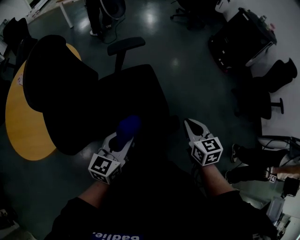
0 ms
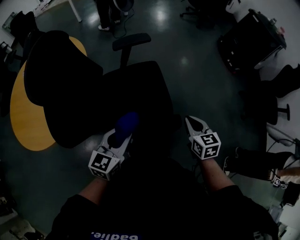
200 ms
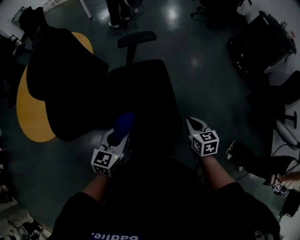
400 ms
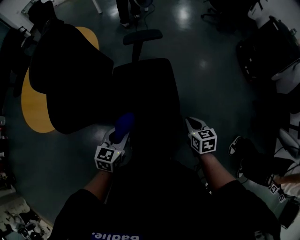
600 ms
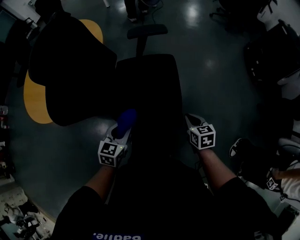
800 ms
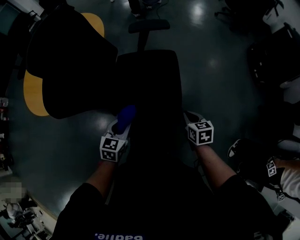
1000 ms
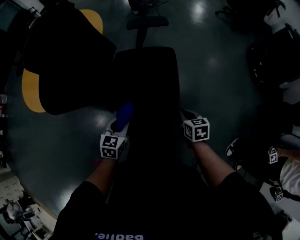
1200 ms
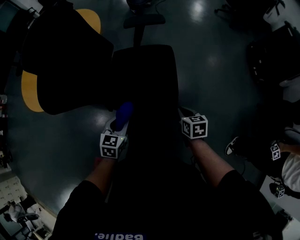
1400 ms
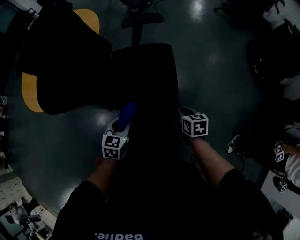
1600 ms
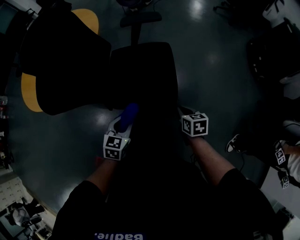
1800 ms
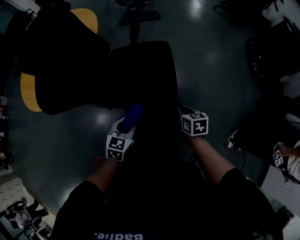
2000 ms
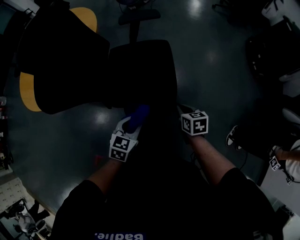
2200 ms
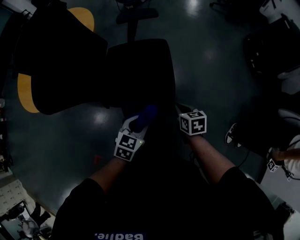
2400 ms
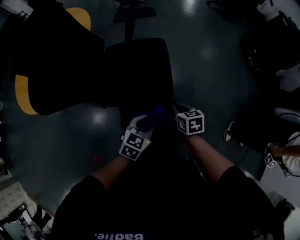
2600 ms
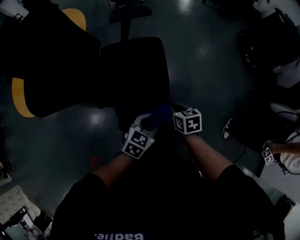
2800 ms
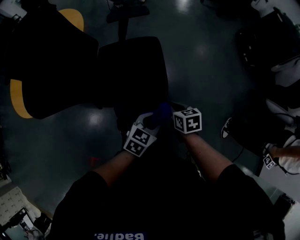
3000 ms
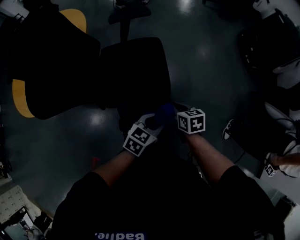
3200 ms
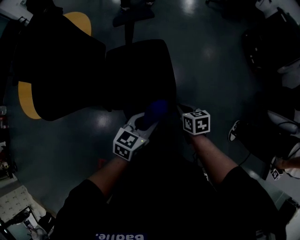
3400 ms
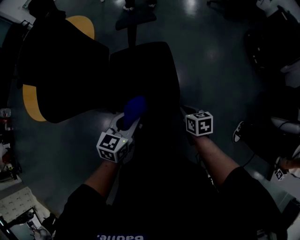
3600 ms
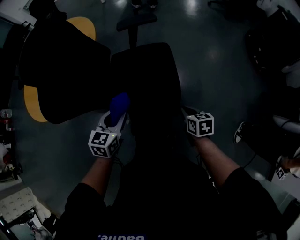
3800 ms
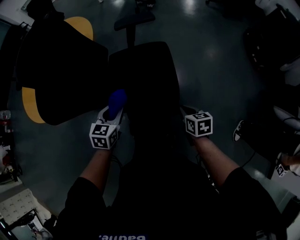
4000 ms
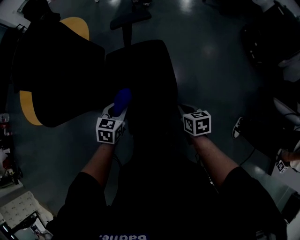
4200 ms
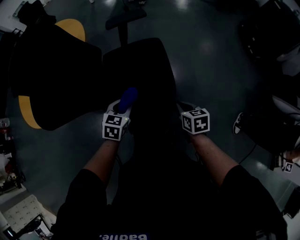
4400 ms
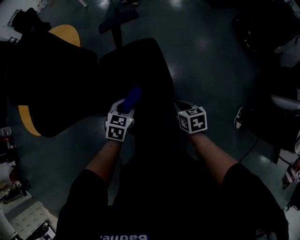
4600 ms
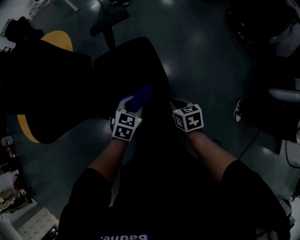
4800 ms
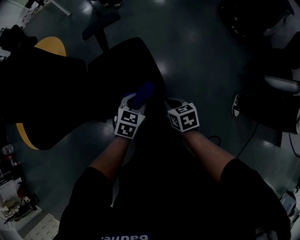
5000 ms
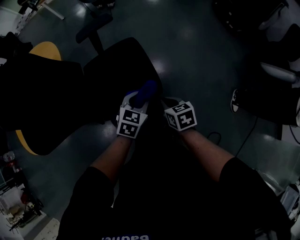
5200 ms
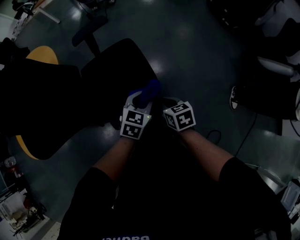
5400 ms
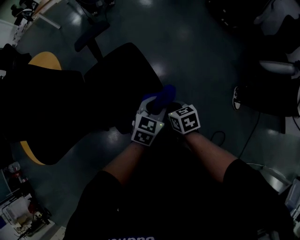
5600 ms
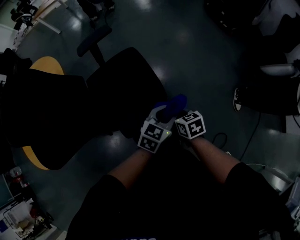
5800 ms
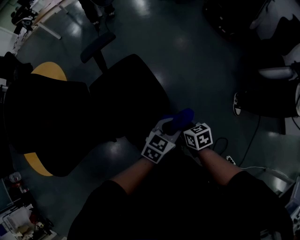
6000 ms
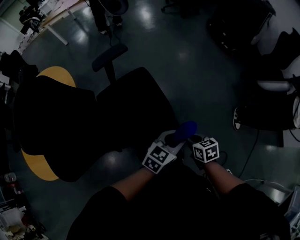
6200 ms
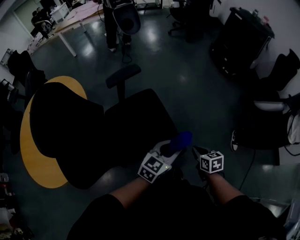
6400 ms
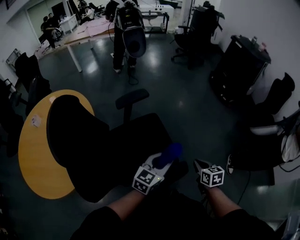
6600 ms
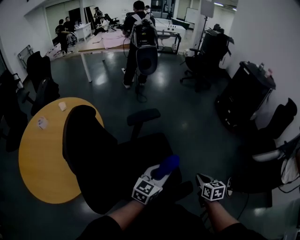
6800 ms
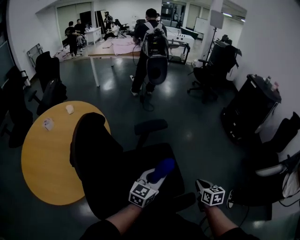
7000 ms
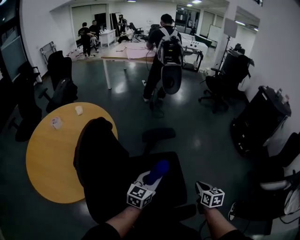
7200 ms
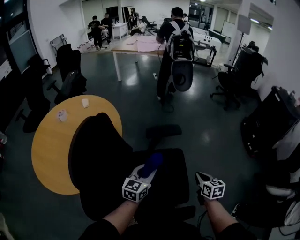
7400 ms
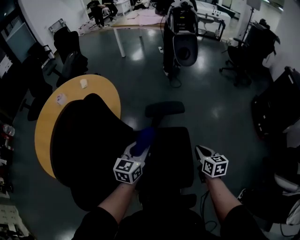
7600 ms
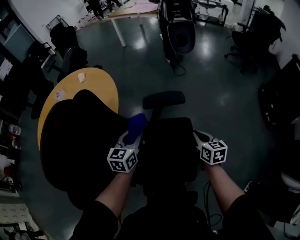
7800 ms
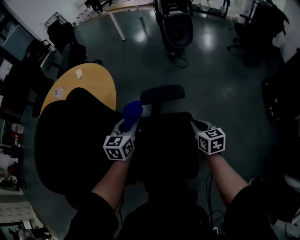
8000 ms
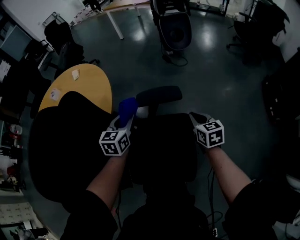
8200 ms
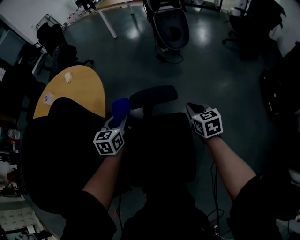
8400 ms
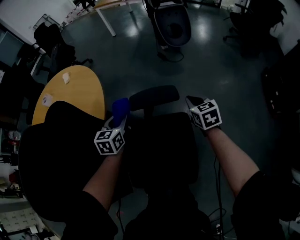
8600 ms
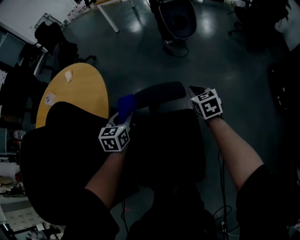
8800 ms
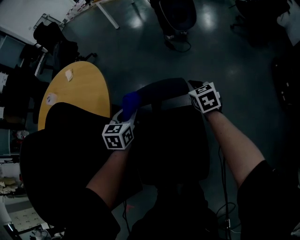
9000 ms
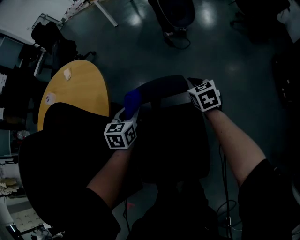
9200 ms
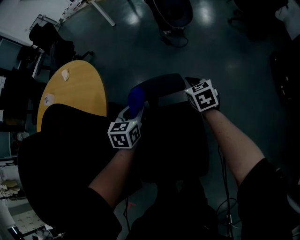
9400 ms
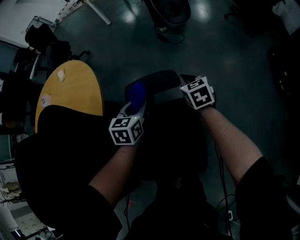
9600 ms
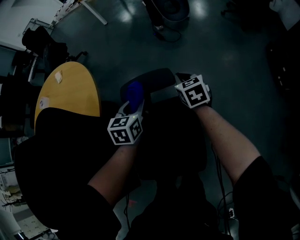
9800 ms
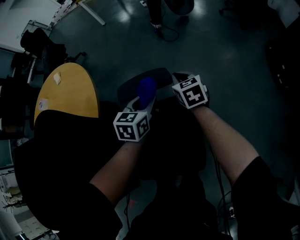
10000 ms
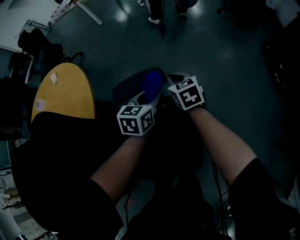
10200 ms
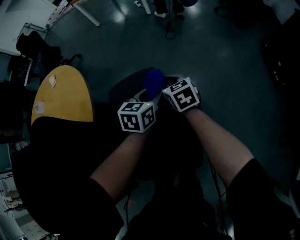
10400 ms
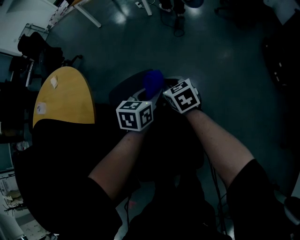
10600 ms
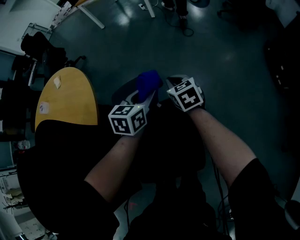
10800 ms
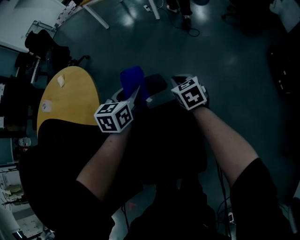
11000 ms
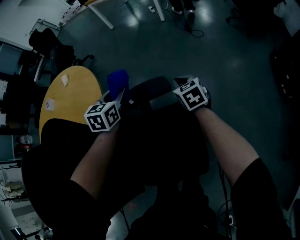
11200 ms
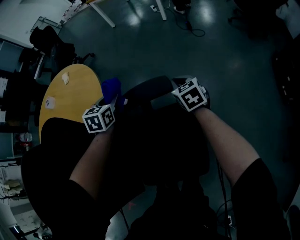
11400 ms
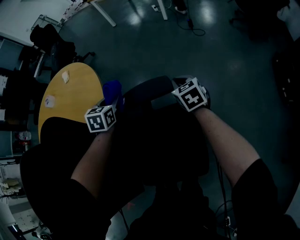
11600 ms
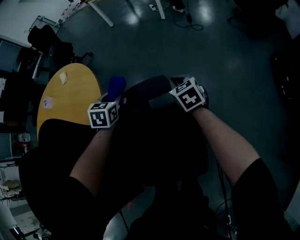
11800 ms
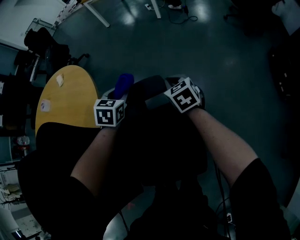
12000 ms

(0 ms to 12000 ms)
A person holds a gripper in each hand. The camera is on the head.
0 ms - 1600 ms: The grippers both shift downward by about 15 cm. The right gripper changes its angle by some 30 degrees; the left gripper rotates approximately 30 degrees.
1600 ms - 3000 ms: The left gripper goes approximately 20 cm to the right, and changes its angle by approximately 30 degrees.
3000 ms - 4400 ms: The left gripper shifts approximately 20 cm to the left and forward, and changes its angle by roughly 20 degrees.
4400 ms - 6000 ms: The right gripper changes place by about 5 cm. Meanwhile the left gripper ends up about 25 cm from where it was, and swivels roughly 40 degrees.
6000 ms - 7600 ms: The left gripper moves roughly 50 cm, and changes its angle by some 50 degrees. The right gripper moves some 35 cm, and rotates approximately 20 degrees.
7600 ms - 9000 ms: The right gripper moves forward, roughly 30 cm, and rotates about 20 degrees; the left gripper heads forward and downward, covering roughly 20 cm, and changes its angle by about 20 degrees.
9000 ms - 10400 ms: The left gripper goes roughly 20 cm to the right.
10400 ms - 12000 ms: The left gripper is displaced to the left and forward by roughly 15 cm, and turns by roughly 30 degrees.

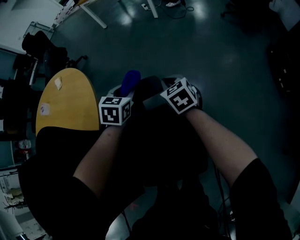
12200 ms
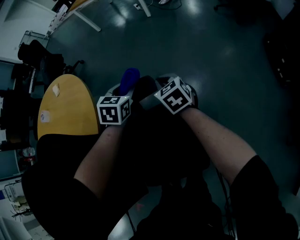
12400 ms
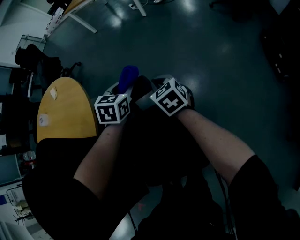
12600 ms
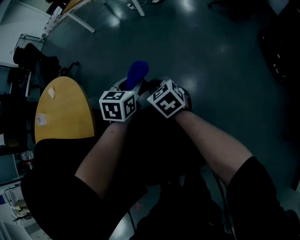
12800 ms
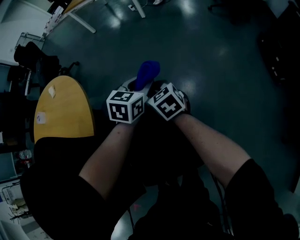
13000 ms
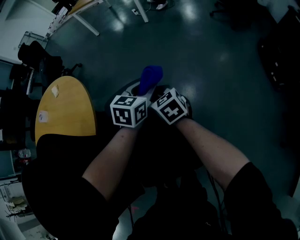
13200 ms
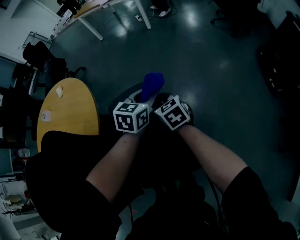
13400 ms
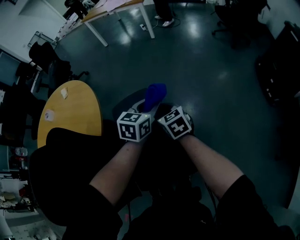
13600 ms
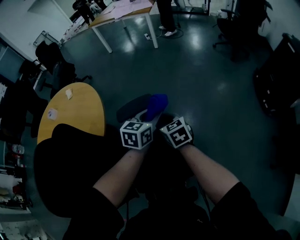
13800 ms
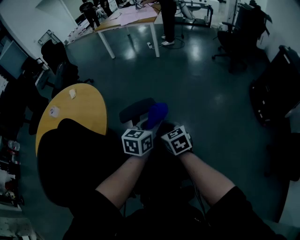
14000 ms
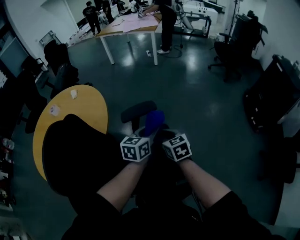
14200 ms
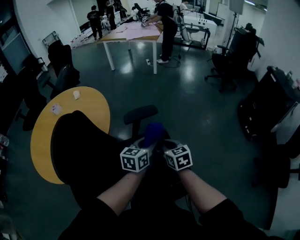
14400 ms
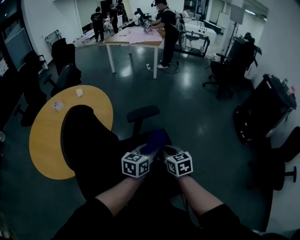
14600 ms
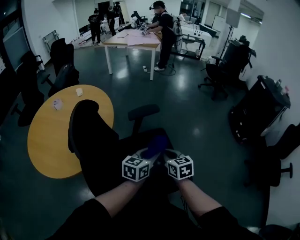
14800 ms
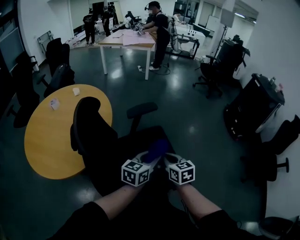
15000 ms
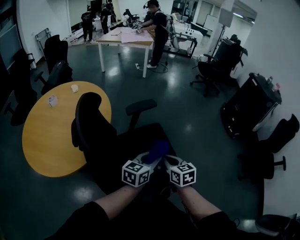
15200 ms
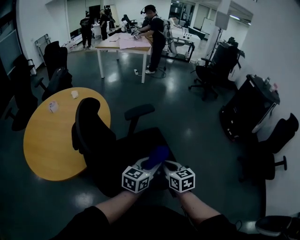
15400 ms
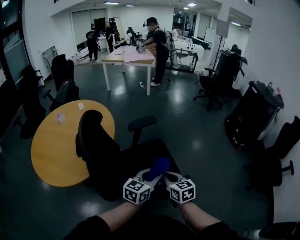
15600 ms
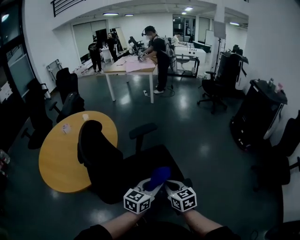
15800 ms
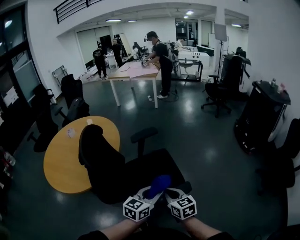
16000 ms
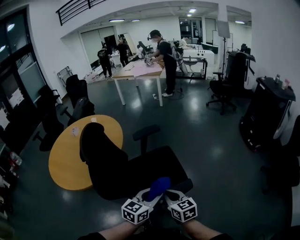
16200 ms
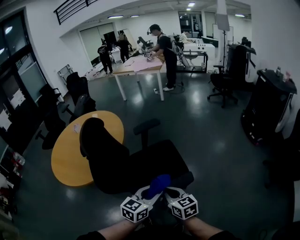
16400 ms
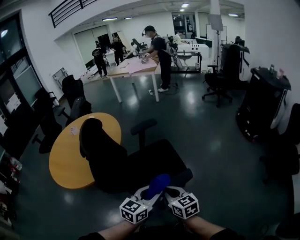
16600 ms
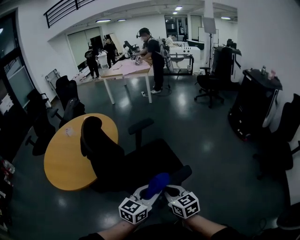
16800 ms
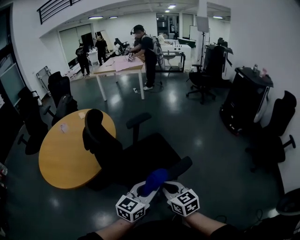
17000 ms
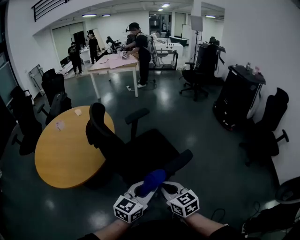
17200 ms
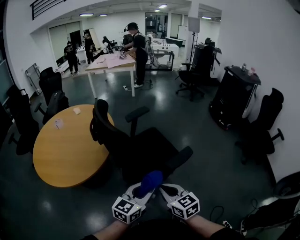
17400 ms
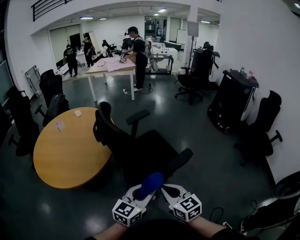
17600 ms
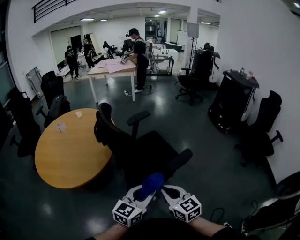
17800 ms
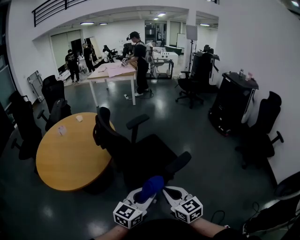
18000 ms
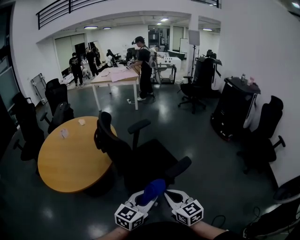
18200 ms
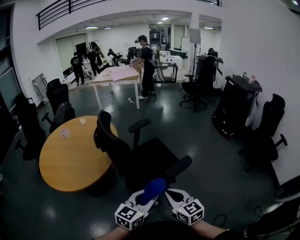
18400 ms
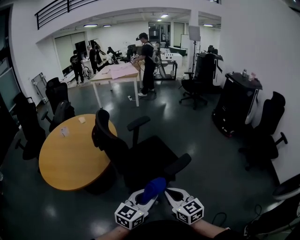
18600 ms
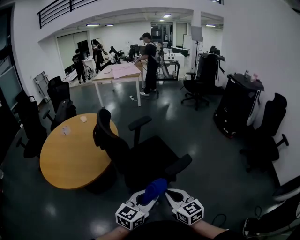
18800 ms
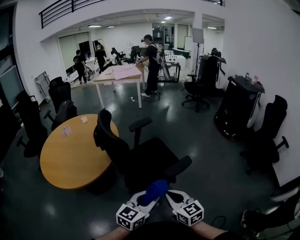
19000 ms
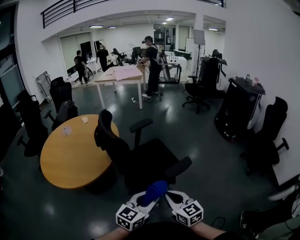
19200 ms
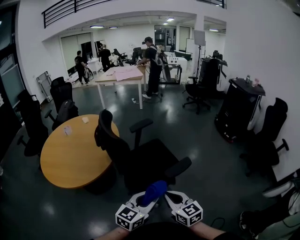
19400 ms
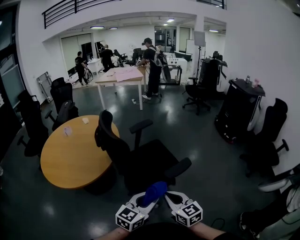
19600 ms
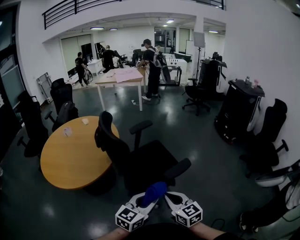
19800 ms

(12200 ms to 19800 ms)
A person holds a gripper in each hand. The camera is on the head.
12200 ms - 13800 ms: The right gripper travels backward and upward by roughly 15 cm. Meanwhile the left gripper shifts some 20 cm backward, to the right and upward, and rotates roughly 30 degrees.
13800 ms - 15200 ms: The two grippers go approximately 35 cm backward.
15200 ms - 16800 ms: Both grippers travel together backward, about 20 cm.
16800 ms - 18200 ms: The grippers both shift backward and to the left by about 15 cm.
18200 ms - 19800 ms: The grippers make only small movements.

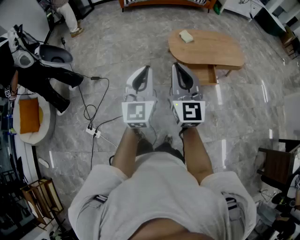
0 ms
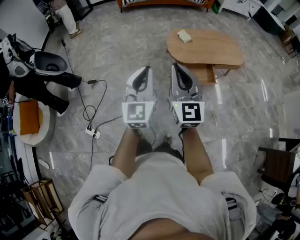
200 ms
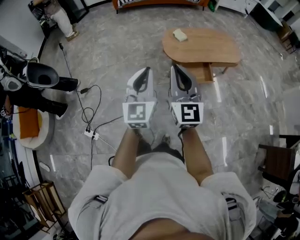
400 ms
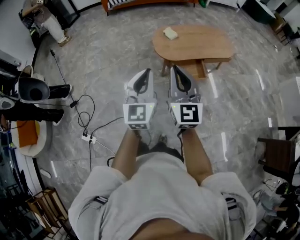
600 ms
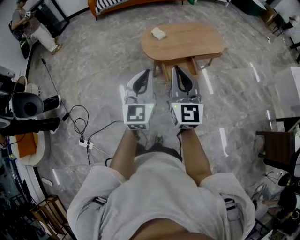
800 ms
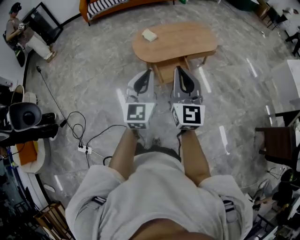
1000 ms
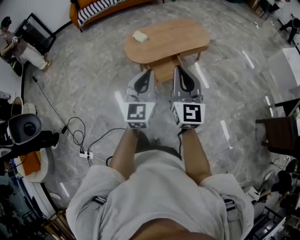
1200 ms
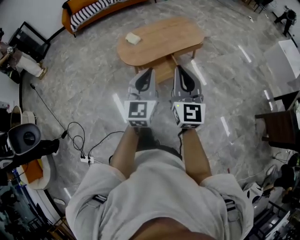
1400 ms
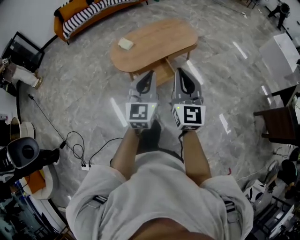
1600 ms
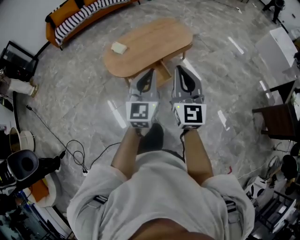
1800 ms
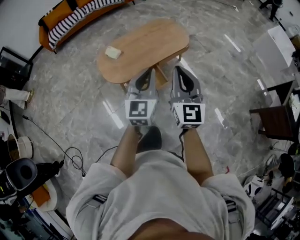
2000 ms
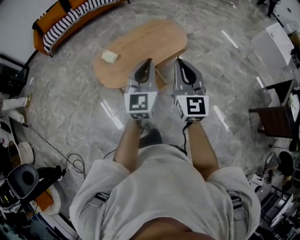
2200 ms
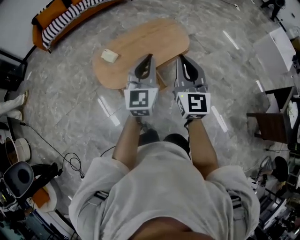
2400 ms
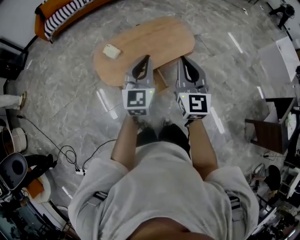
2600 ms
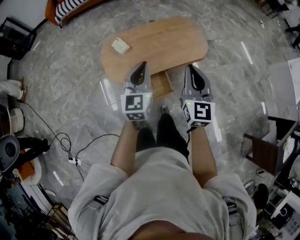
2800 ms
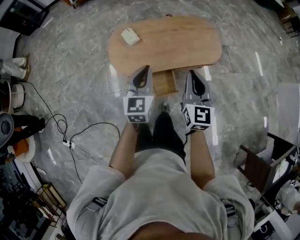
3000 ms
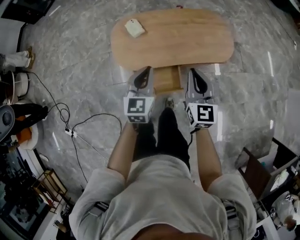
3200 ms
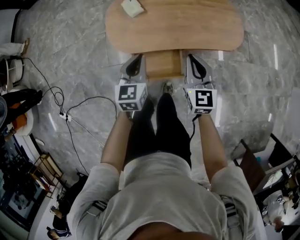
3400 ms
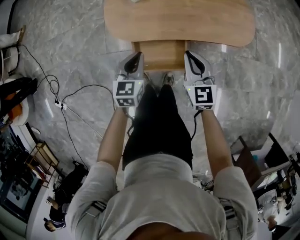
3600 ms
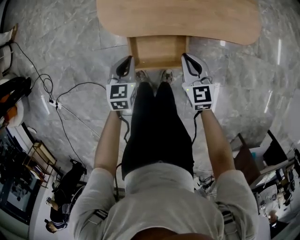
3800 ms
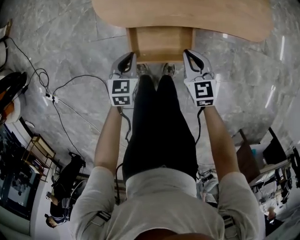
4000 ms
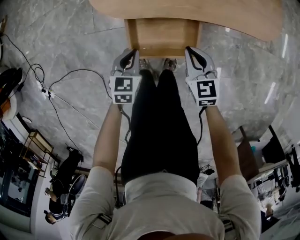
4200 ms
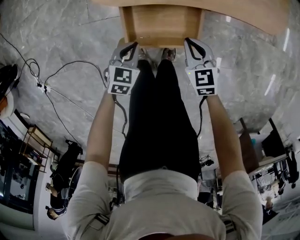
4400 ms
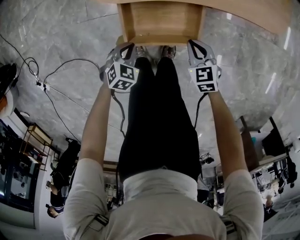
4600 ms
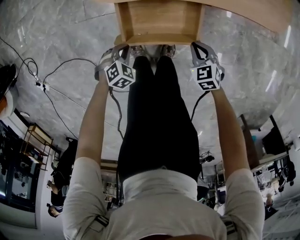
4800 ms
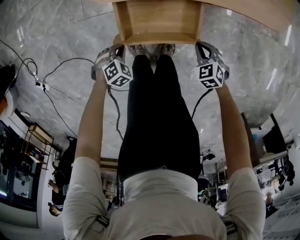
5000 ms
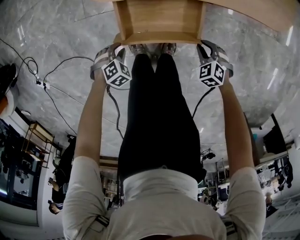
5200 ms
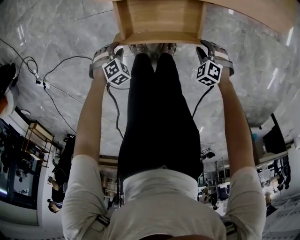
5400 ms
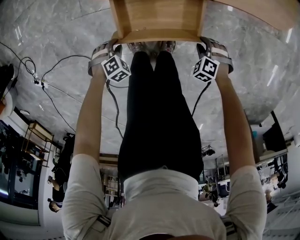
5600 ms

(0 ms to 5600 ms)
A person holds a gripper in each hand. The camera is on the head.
0 ms - 1400 ms: Both grippers travel together to the right, approximately 30 cm. The right gripper swivels about 20 degrees; the left gripper turns by about 20 degrees.
1400 ms - 2800 ms: Both grippers move forward, roughly 35 cm.
2800 ms - 4200 ms: The grippers both shift downward by about 50 cm. The right gripper tips its fingers downward by about 30 degrees, while the left gripper points its fingers roughly 40 degrees further downward.
4200 ms - 5600 ms: Both grippers travel together downward, approximately 20 cm. The left gripper rolls clockwise, seen from behind, by approximately 50 degrees, and opens; the right gripper tips its fingers downward by about 40 degrees, and opens its fingers.
